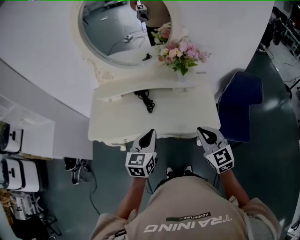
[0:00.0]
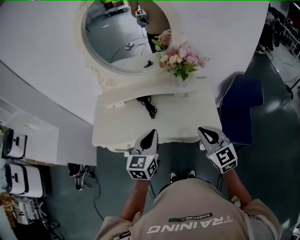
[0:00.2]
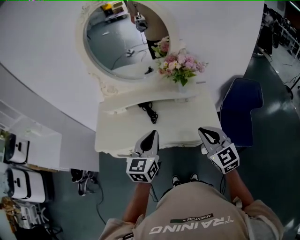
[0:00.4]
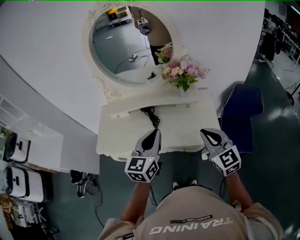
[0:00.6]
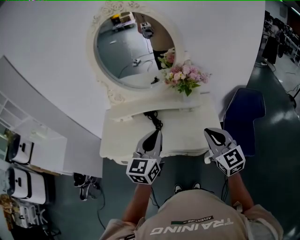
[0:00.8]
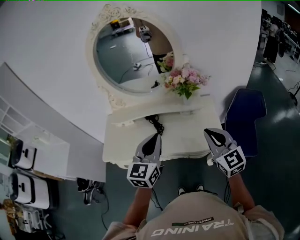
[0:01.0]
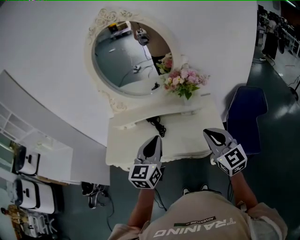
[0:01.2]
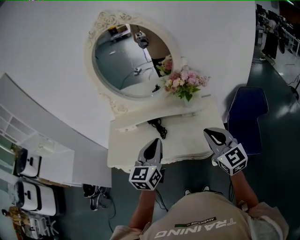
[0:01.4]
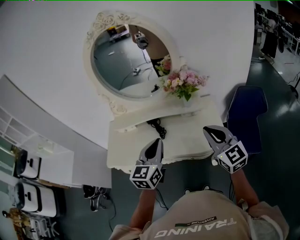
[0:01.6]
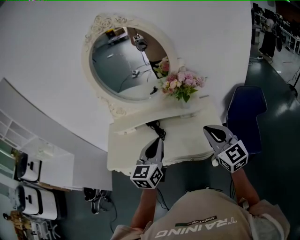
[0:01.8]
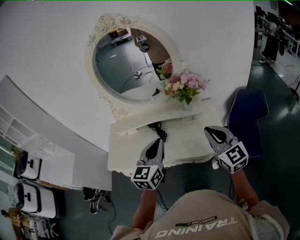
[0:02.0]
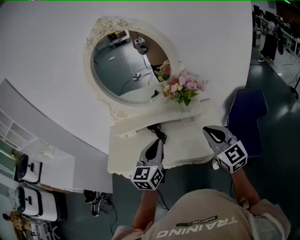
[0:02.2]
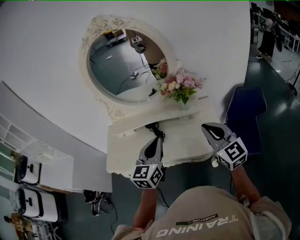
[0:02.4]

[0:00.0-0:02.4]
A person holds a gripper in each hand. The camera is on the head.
0:00.0 to 0:01.2: The grippers both shift upward by approximately 10 cm.
0:01.2 to 0:02.4: The grippers make only small movements.

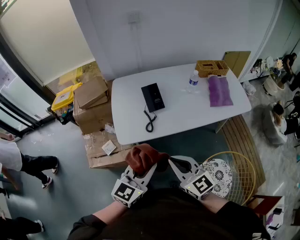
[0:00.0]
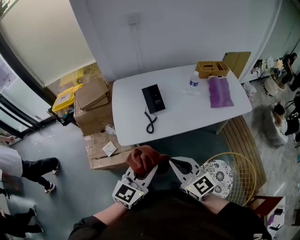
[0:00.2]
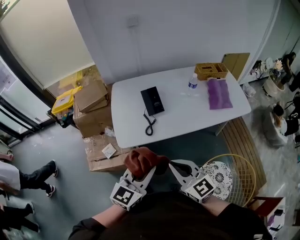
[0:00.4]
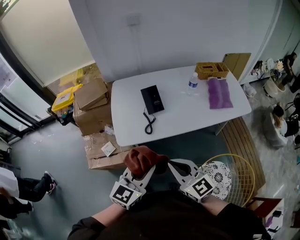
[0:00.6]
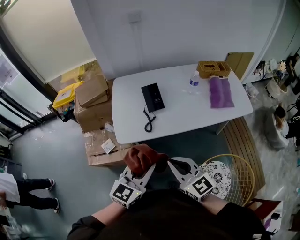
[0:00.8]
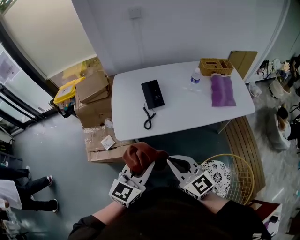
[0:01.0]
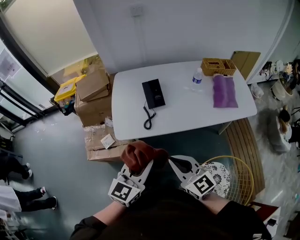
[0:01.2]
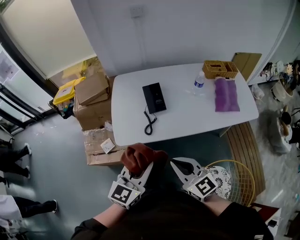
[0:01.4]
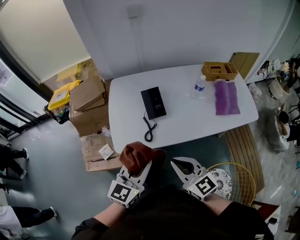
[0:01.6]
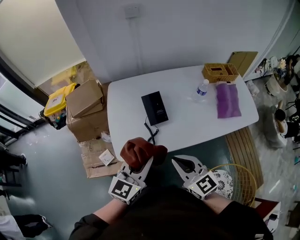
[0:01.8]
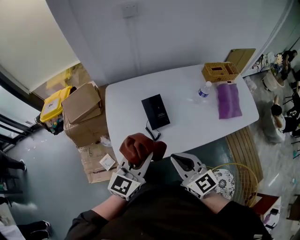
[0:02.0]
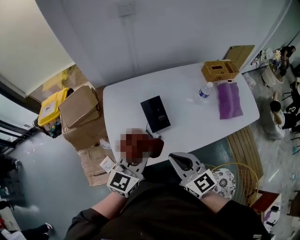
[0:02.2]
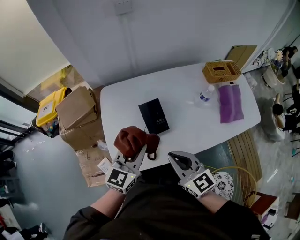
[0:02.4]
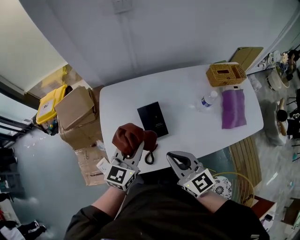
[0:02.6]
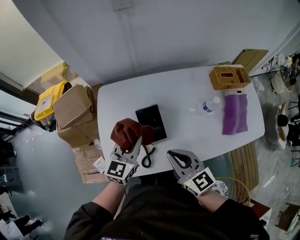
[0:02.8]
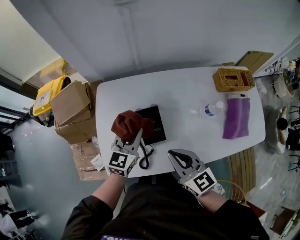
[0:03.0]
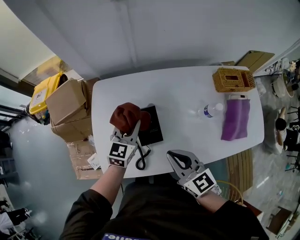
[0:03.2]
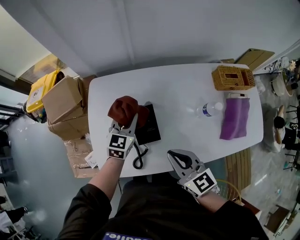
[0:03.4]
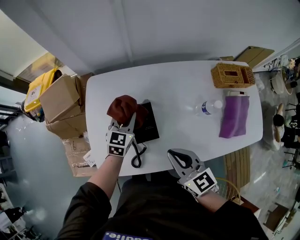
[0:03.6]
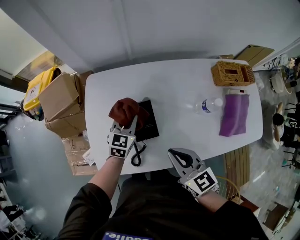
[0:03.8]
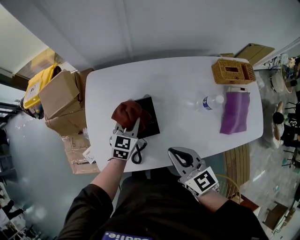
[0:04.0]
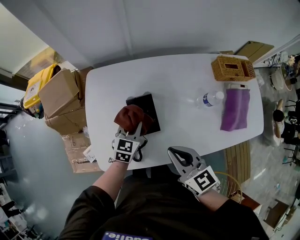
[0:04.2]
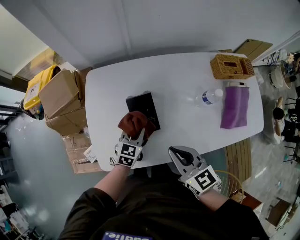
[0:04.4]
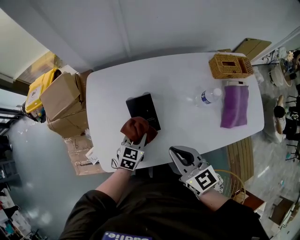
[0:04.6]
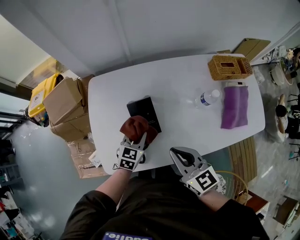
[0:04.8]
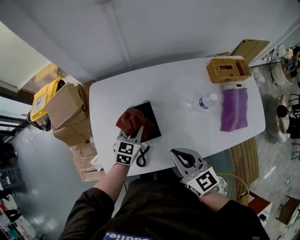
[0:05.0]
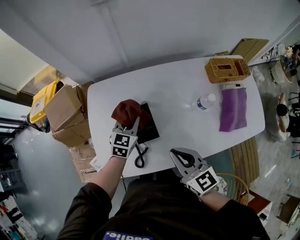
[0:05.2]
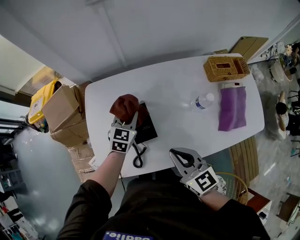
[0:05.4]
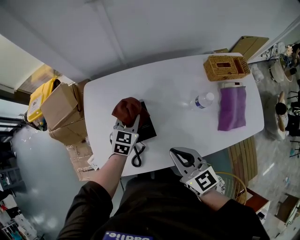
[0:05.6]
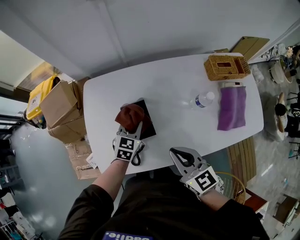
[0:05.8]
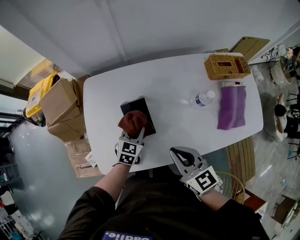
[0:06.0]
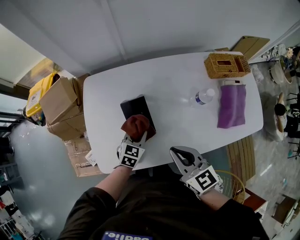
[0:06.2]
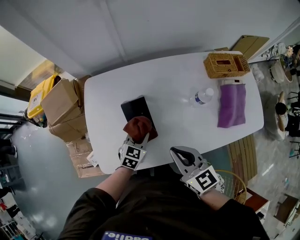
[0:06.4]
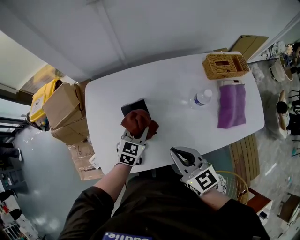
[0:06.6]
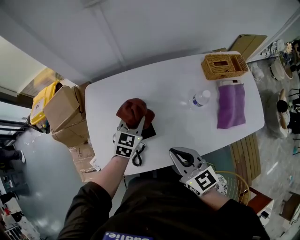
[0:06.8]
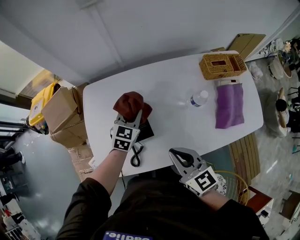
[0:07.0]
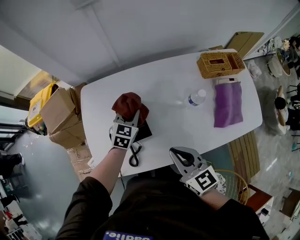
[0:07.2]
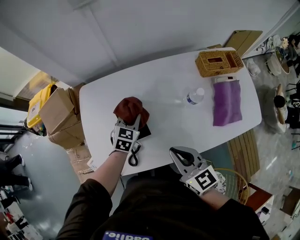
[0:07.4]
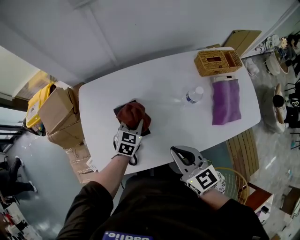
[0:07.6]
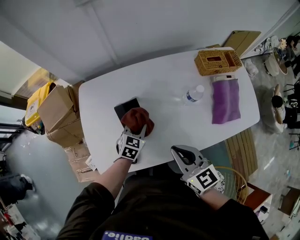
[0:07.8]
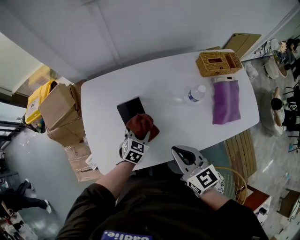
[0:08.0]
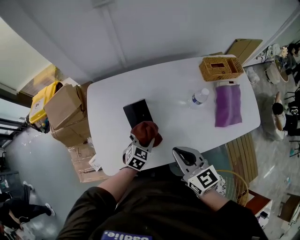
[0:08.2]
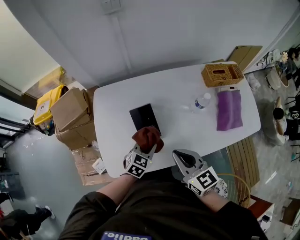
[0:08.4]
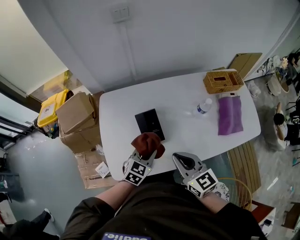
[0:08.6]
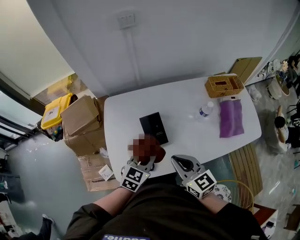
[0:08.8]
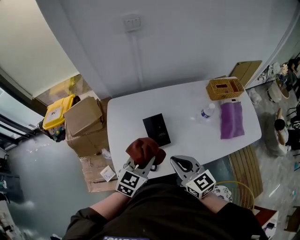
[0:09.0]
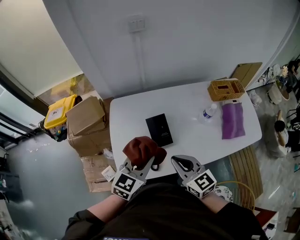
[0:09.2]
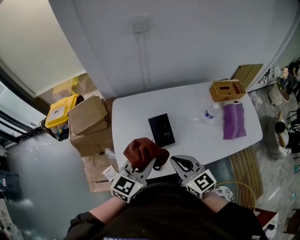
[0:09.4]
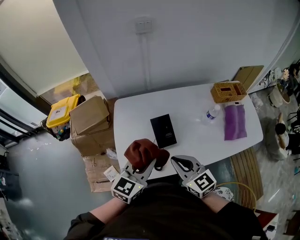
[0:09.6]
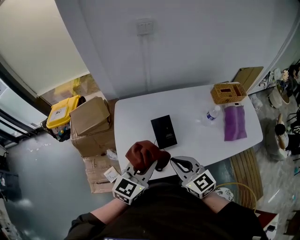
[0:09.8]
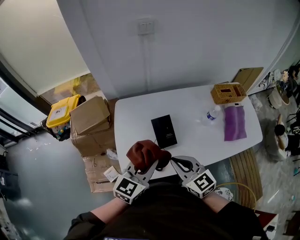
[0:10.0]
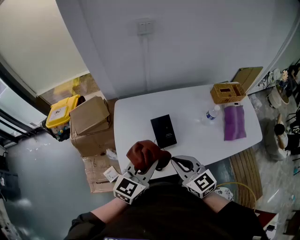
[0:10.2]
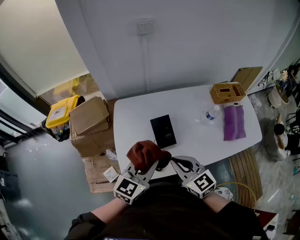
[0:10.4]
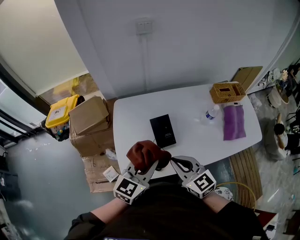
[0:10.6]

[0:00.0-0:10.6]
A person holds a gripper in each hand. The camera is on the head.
0:00.0 to 0:01.6: The two grippers go about 10 cm forward.
0:01.6 to 0:03.0: Both grippers move forward, approximately 30 cm.
0:03.0 to 0:04.6: The left gripper heads downward and backward, covering approximately 15 cm, and changes its angle by some 20 degrees.
0:04.6 to 0:06.0: The left gripper moves about 15 cm forward and comes back.
0:06.0 to 0:07.6: The left gripper goes forward and backward, about 15 cm each way, reversing 2 times.
0:07.6 to 0:09.0: The right gripper goes roughly 10 cm to the left. The left gripper moves upward and backward, some 25 cm.
0:09.0 to 0:10.6: The left gripper is displaced upward by approximately 5 cm.

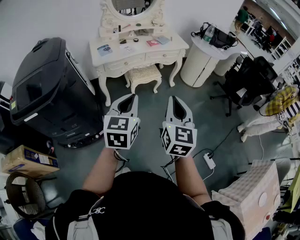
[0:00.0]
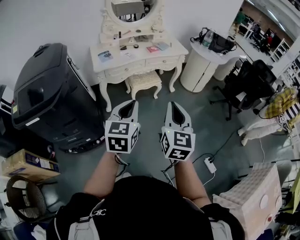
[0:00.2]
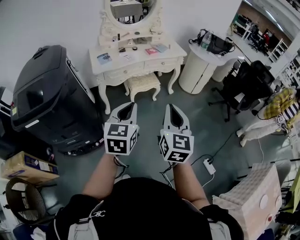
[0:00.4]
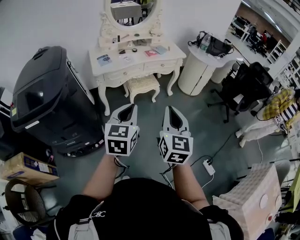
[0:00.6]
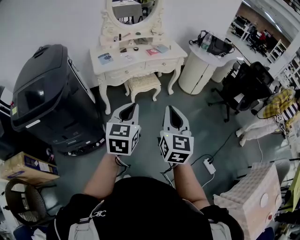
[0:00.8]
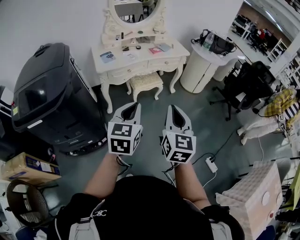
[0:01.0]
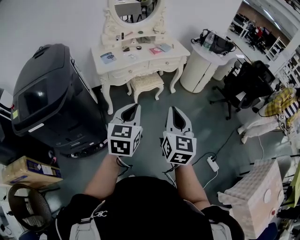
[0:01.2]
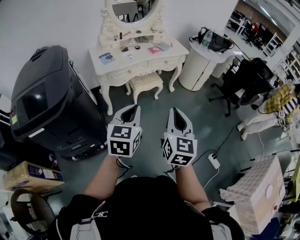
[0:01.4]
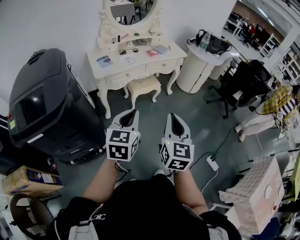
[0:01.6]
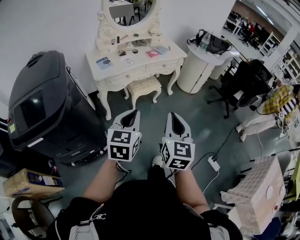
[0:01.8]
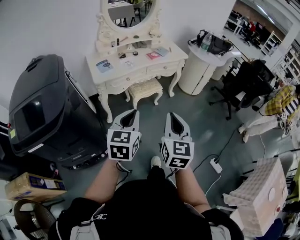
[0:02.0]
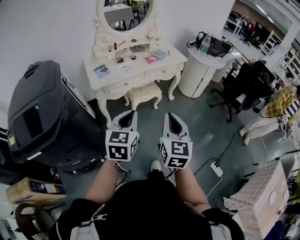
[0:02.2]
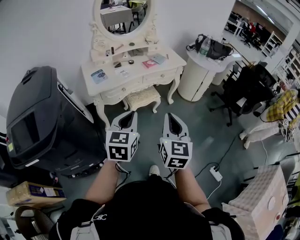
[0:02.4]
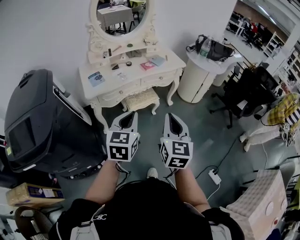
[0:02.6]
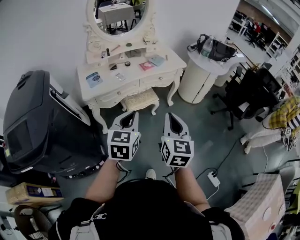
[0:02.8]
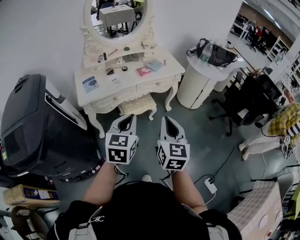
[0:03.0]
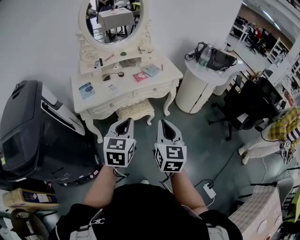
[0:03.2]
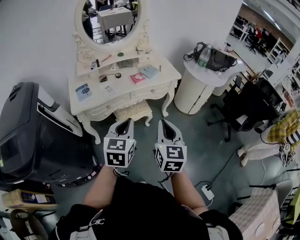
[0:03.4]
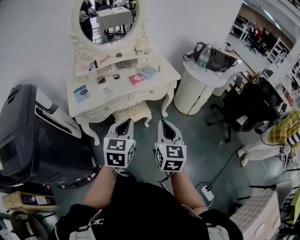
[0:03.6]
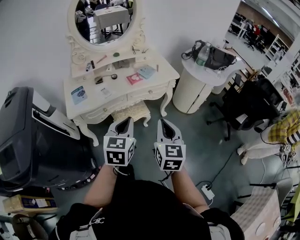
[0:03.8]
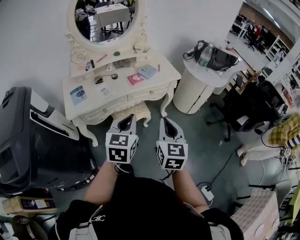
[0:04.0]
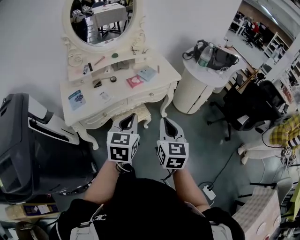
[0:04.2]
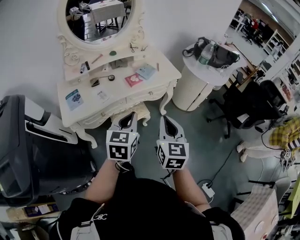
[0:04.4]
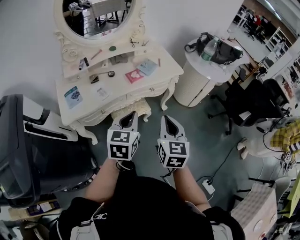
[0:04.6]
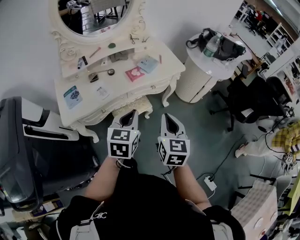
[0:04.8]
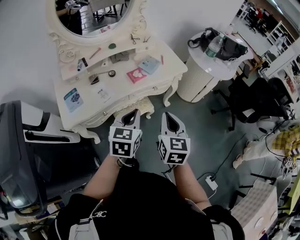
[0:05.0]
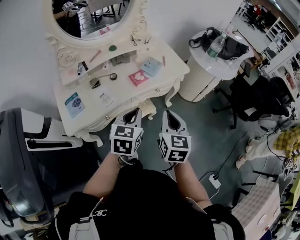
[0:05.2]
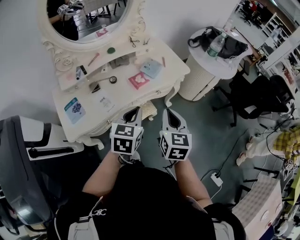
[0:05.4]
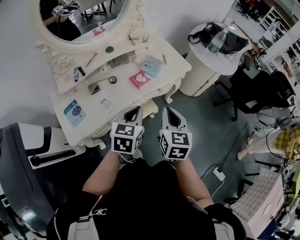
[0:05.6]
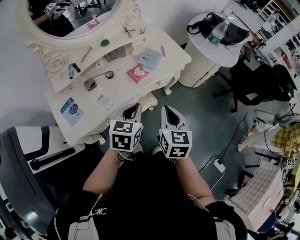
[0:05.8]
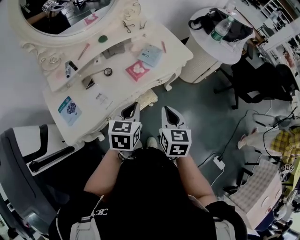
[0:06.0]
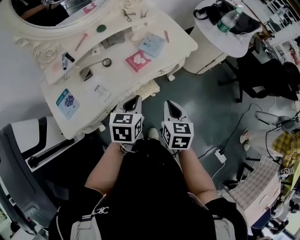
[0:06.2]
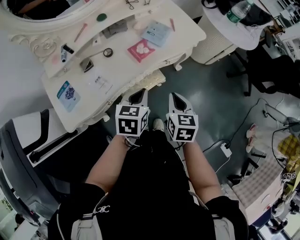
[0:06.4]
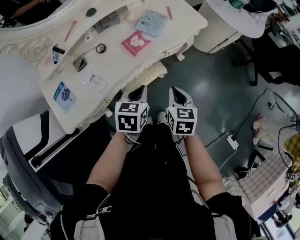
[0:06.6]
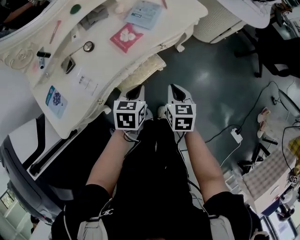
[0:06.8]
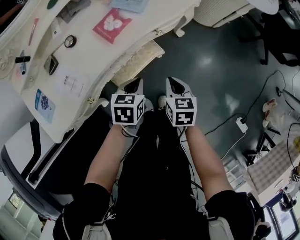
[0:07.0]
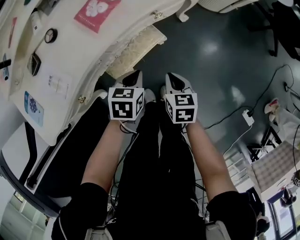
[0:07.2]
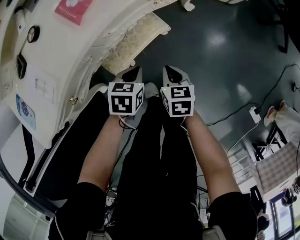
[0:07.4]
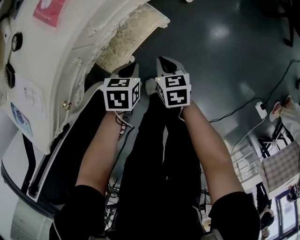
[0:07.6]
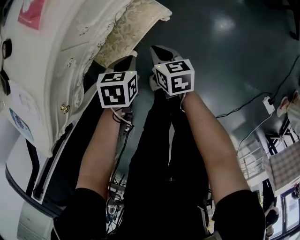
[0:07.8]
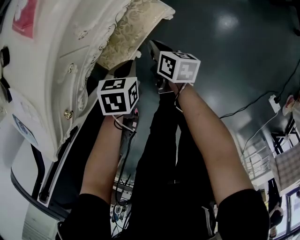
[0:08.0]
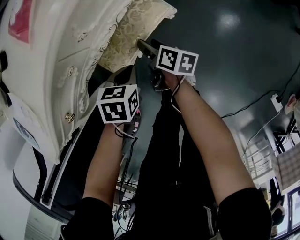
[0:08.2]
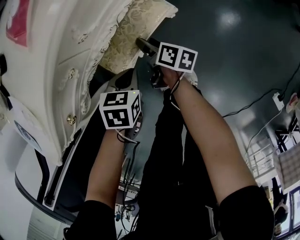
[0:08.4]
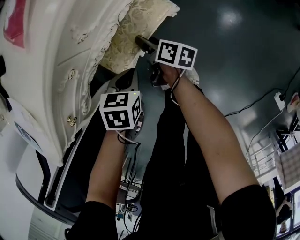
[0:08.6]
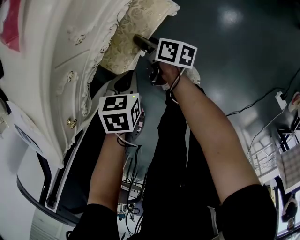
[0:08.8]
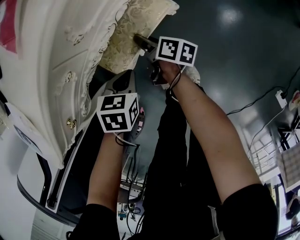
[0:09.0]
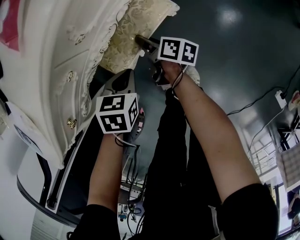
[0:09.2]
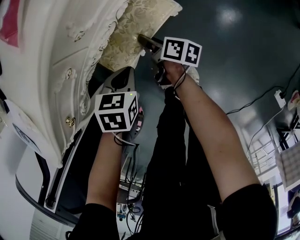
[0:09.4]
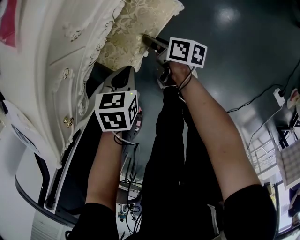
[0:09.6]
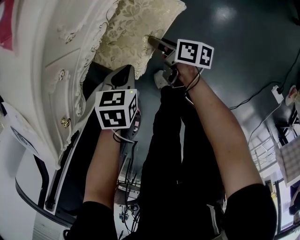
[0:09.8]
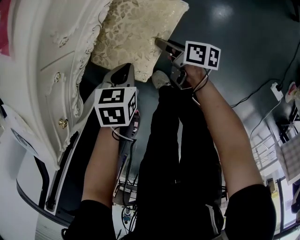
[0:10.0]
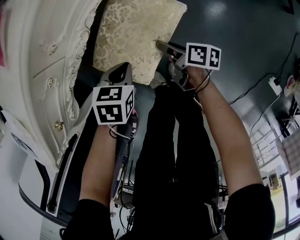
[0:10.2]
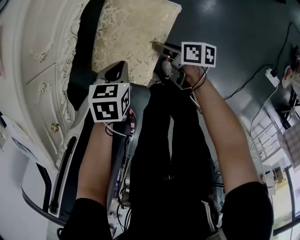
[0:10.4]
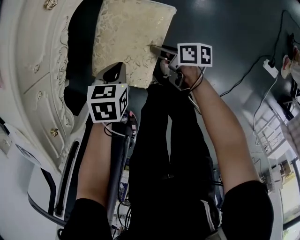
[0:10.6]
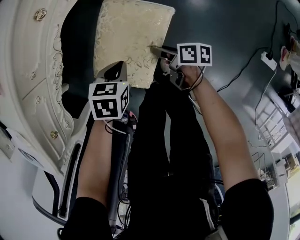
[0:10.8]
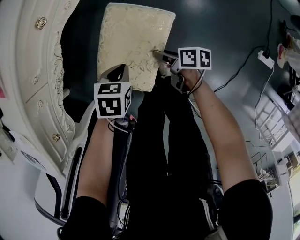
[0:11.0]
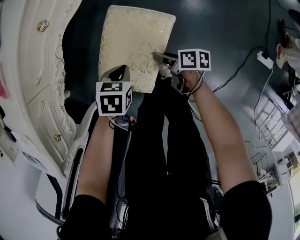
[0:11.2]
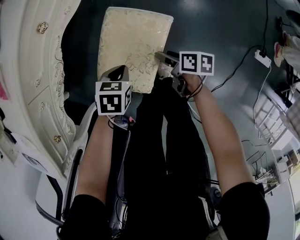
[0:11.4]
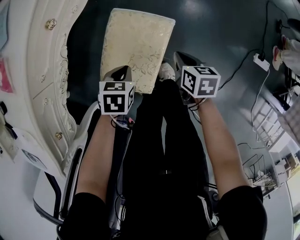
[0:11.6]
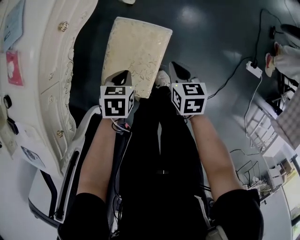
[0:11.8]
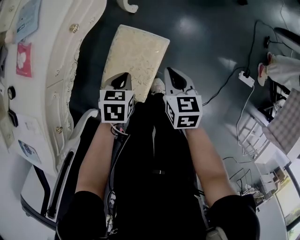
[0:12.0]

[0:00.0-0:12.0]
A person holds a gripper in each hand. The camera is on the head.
0:00.0 to 0:01.6: Both grippers move to the left, approximately 10 cm.
0:01.6 to 0:03.0: Both grippers travel together forward, roughly 25 cm.
0:03.0 to 0:04.4: Both grippers travel together forward, roughly 20 cm.
0:04.4 to 0:06.0: Both grippers move forward, downward and to the left, roughly 20 cm.
0:06.0 to 0:07.6: Both grippers travel together downward, approximately 50 cm. The left gripper tilts its fingers about 30 degrees downward; the right gripper rotates some 30 degrees.
0:07.6 to 0:09.0: The right gripper moves to the left, downward and forward, some 15 cm, twists roughly 50 degrees clockwise, seen from behind, and opens up. The left gripper goes roughly 5 cm to the left.
0:09.0 to 0:10.4: The right gripper travels to the right and backward by roughly 20 cm, while the left gripper moves to the right, some 10 cm.
0:10.4 to 0:12.0: The left gripper ends up about 15 cm from where it was. The right gripper travels upward by some 20 cm, rotates roughly 60 degrees, and closes.
